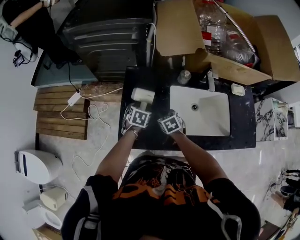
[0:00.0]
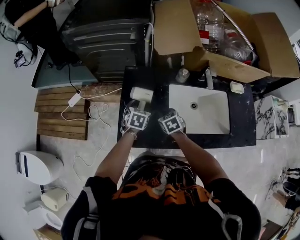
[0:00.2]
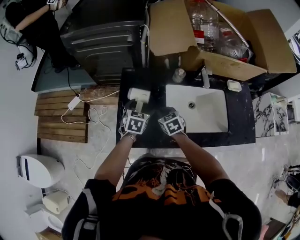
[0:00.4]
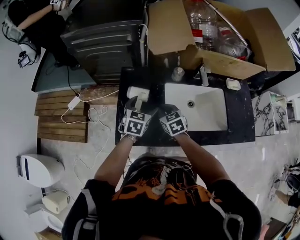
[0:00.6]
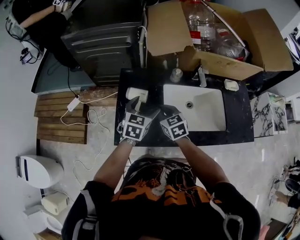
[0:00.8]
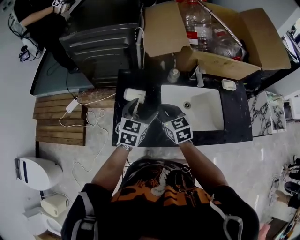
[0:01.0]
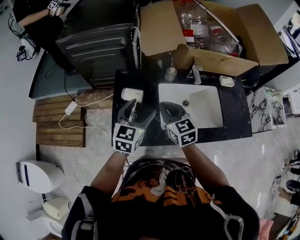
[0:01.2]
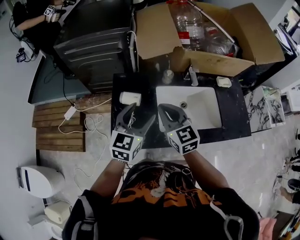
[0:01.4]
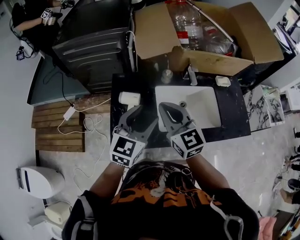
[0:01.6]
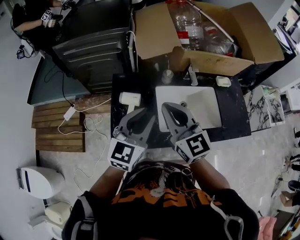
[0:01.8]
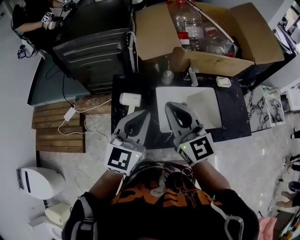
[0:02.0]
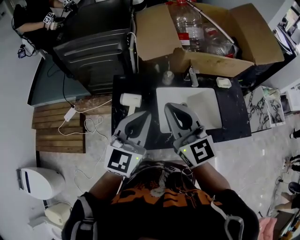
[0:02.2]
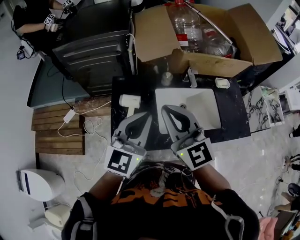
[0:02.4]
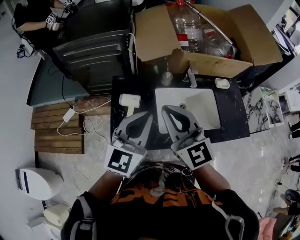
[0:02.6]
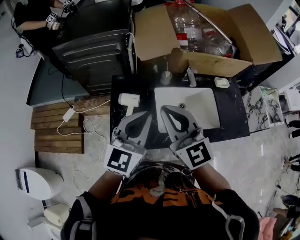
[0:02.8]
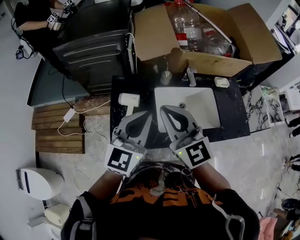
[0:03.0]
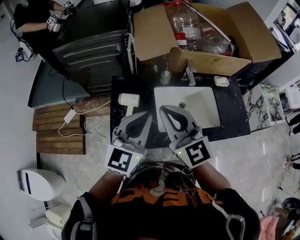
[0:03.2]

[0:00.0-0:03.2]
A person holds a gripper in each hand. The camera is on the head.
0:00.0 to 0:01.6: The two grippers go approximately 30 cm upward. The left gripper tilts its fingers approximately 40 degrees upward, and closes its fingers; the right gripper tilts its fingers some 50 degrees upward.
0:01.6 to 0:03.2: Both grippers travel together upward, about 5 cm. The left gripper closes up.

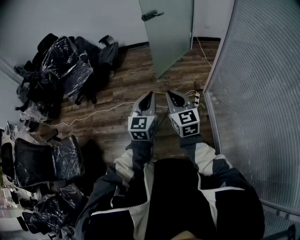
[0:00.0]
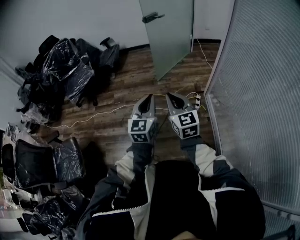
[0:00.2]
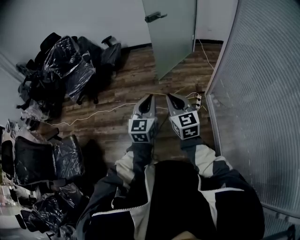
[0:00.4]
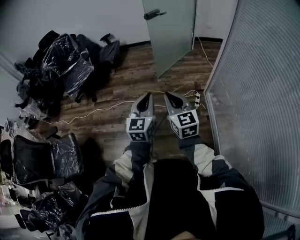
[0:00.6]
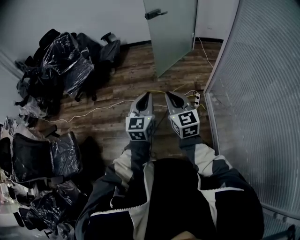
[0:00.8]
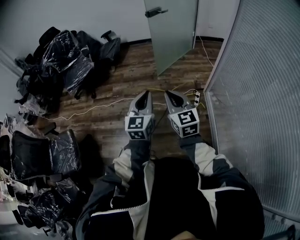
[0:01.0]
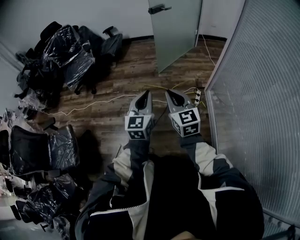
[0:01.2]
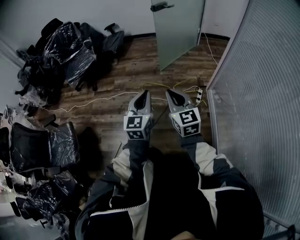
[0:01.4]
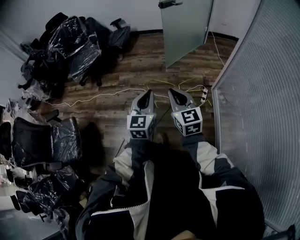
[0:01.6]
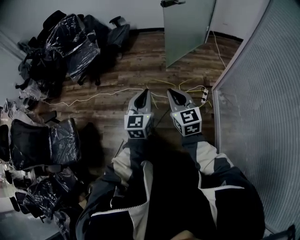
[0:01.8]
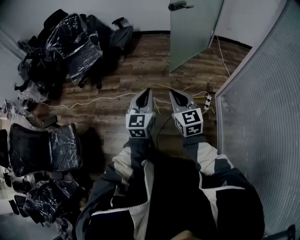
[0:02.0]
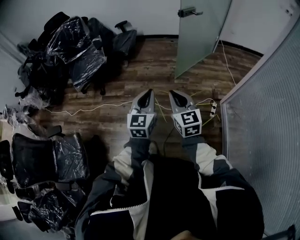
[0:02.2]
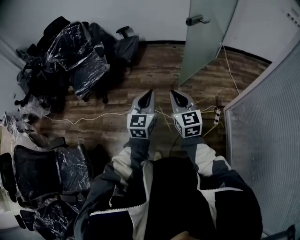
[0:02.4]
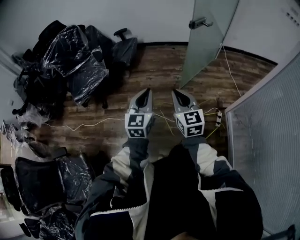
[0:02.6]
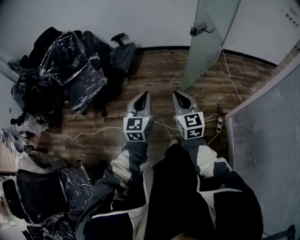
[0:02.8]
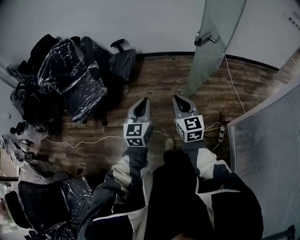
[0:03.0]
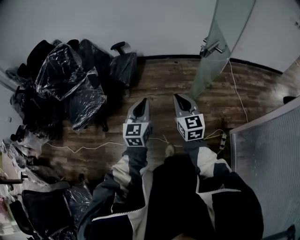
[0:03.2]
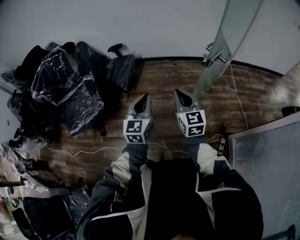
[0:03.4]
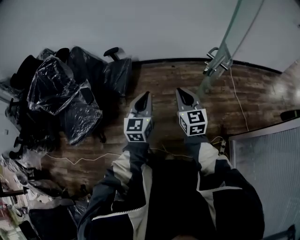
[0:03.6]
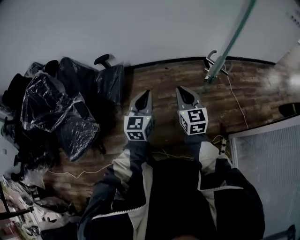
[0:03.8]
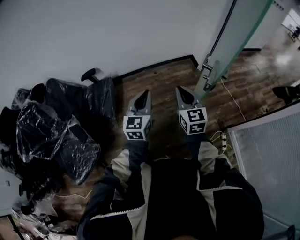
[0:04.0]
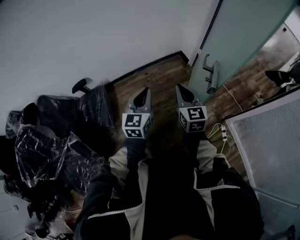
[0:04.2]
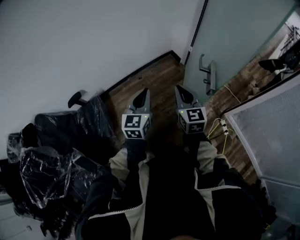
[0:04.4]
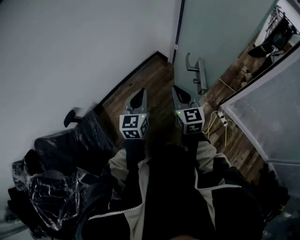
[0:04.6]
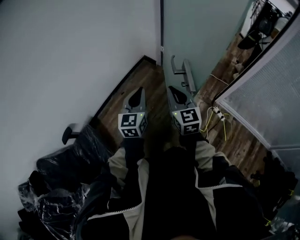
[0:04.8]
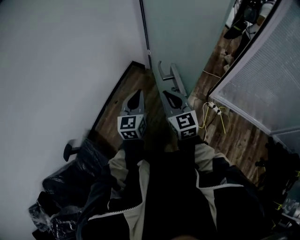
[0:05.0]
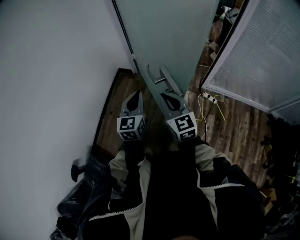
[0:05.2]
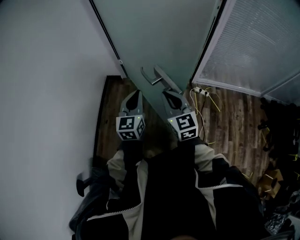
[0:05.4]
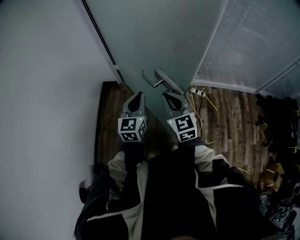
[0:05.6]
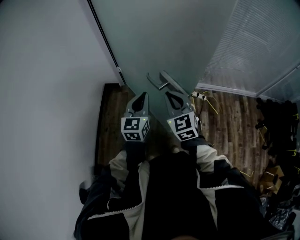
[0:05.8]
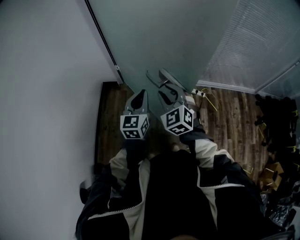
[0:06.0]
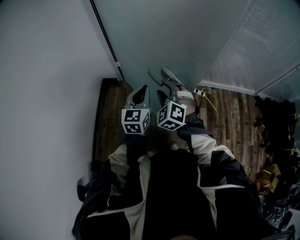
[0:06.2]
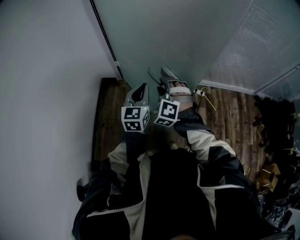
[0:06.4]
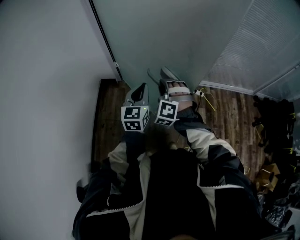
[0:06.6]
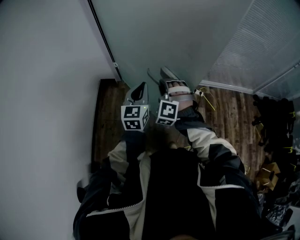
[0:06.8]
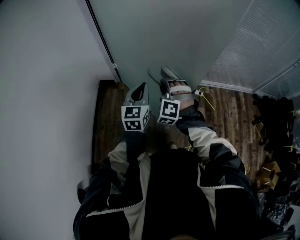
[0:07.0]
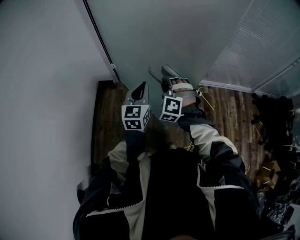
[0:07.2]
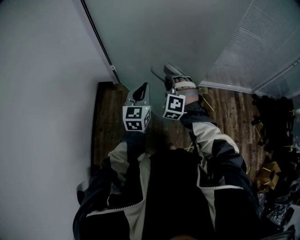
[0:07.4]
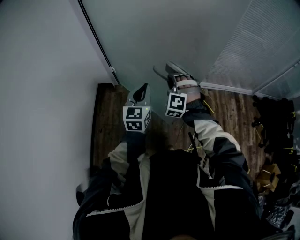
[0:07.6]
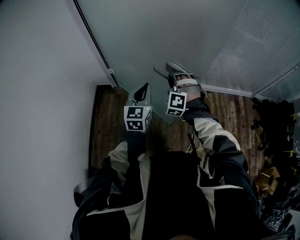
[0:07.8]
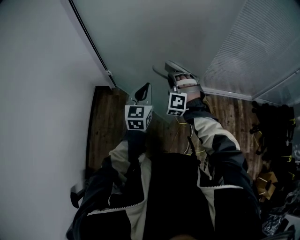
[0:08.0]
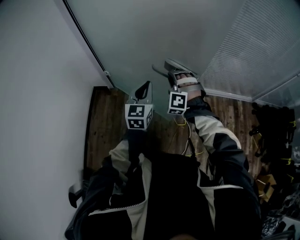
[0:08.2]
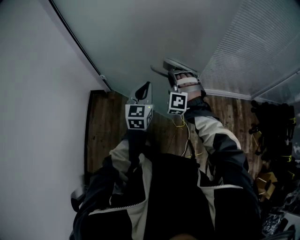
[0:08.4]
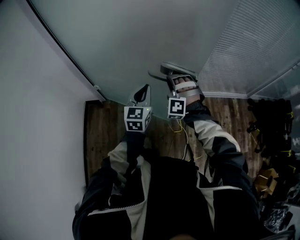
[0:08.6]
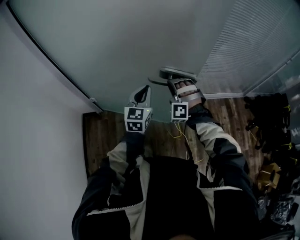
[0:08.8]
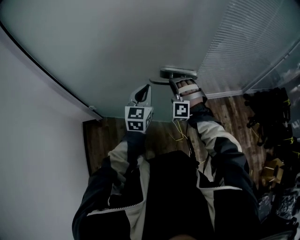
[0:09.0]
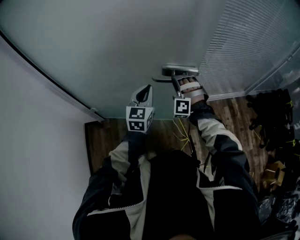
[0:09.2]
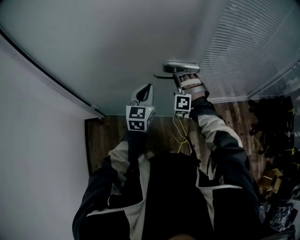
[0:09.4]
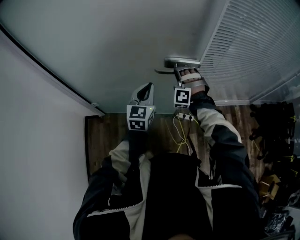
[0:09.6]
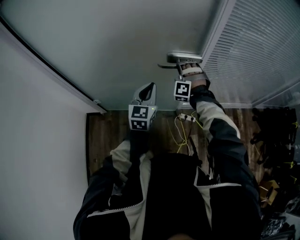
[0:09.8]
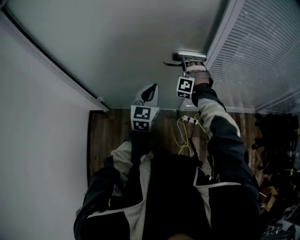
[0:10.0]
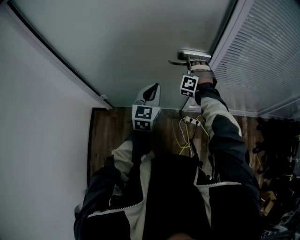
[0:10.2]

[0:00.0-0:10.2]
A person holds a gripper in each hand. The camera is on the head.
0:00.0 to 0:01.4: The grippers make only small movements.
0:01.4 to 0:03.0: The pair of grippers is taken forward and to the left, some 50 cm.
0:03.0 to 0:04.4: Both grippers are carried about 50 cm. The right gripper rotates approximately 40 degrees. Meanwhile the left gripper changes its angle by approximately 40 degrees.
0:04.4 to 0:05.8: The left gripper moves some 25 cm, and turns by roughly 50 degrees. The right gripper changes place by some 15 cm, and changes its angle by some 40 degrees.
0:05.8 to 0:07.2: The right gripper shifts about 10 cm forward and downward, twists approximately 50 degrees counterclockwise, seen from behind, and opens up.
0:07.2 to 0:08.8: The grippers both shift forward and to the right by some 30 cm.
0:08.8 to 0:10.2: The left gripper moves forward, some 10 cm, while the right gripper heads forward, covering about 25 cm.

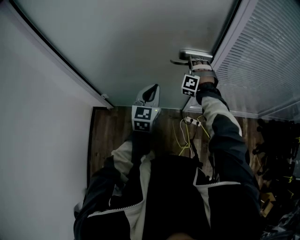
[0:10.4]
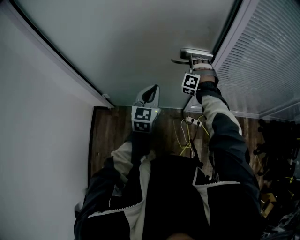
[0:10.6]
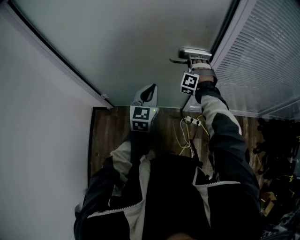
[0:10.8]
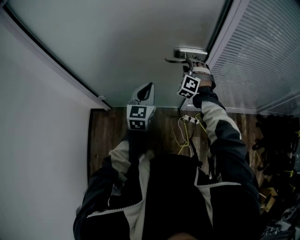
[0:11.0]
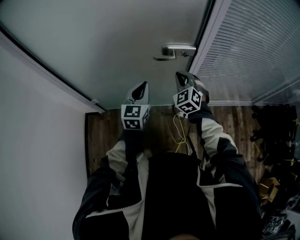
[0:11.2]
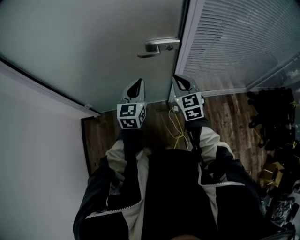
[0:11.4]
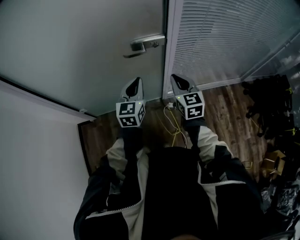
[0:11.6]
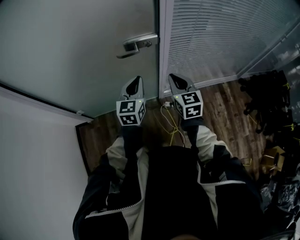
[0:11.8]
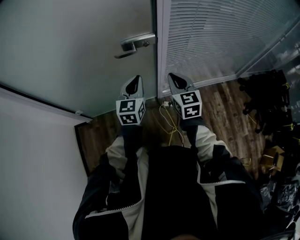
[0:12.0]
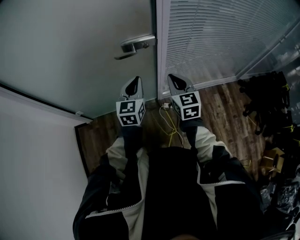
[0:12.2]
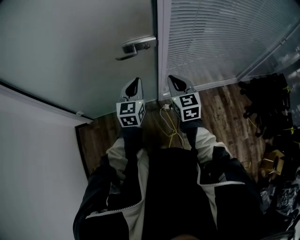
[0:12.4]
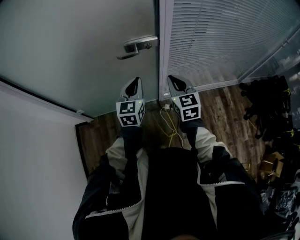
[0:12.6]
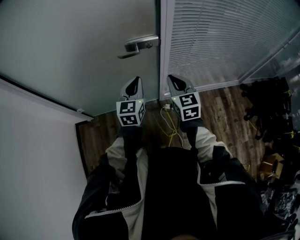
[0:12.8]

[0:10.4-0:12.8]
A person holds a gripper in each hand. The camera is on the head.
0:10.4 to 0:11.6: The left gripper moves to the right, approximately 10 cm, while the right gripper is displaced backward and to the right by roughly 20 cm, twists some 100 degrees clockwise, seen from behind, and closes.
0:11.6 to 0:12.8: The grippers move only a little.

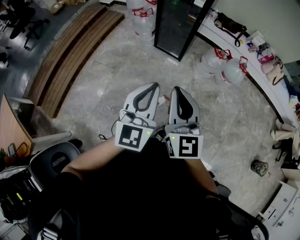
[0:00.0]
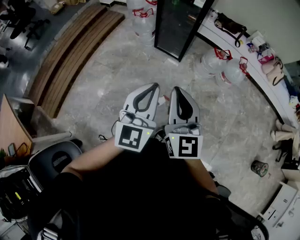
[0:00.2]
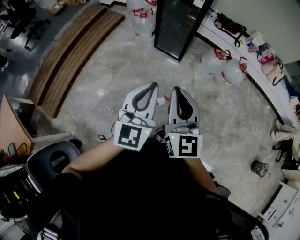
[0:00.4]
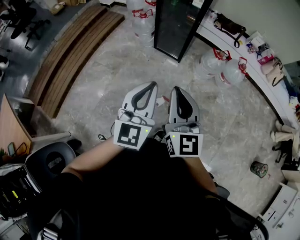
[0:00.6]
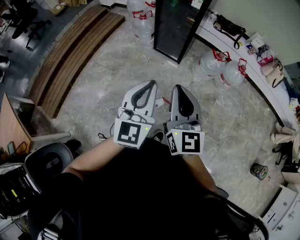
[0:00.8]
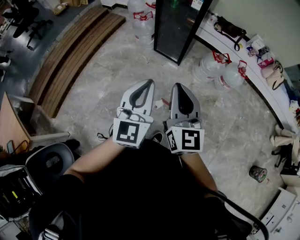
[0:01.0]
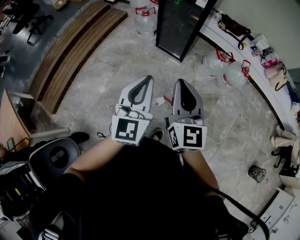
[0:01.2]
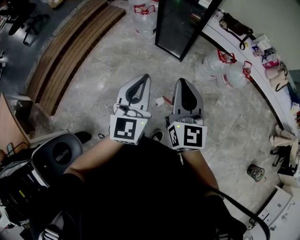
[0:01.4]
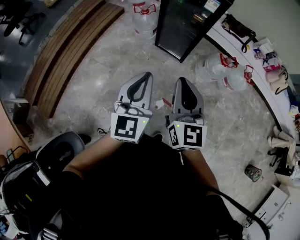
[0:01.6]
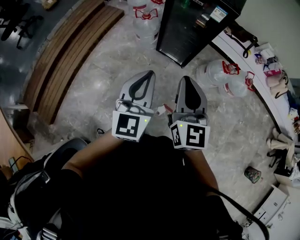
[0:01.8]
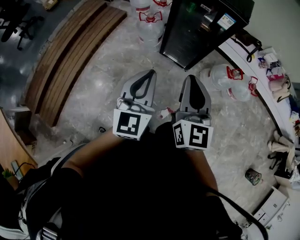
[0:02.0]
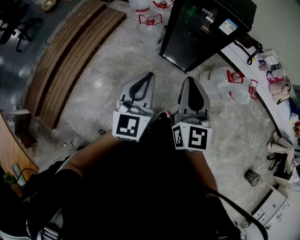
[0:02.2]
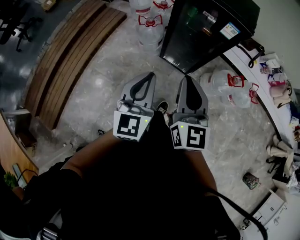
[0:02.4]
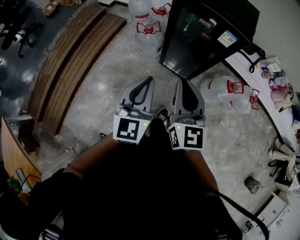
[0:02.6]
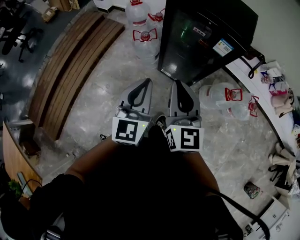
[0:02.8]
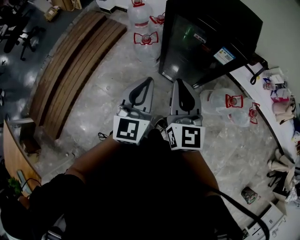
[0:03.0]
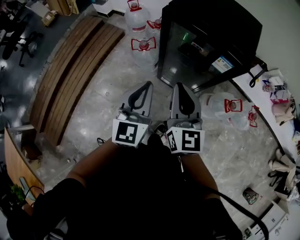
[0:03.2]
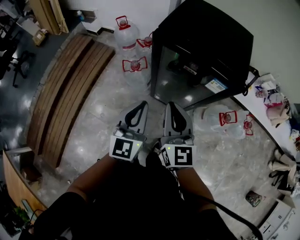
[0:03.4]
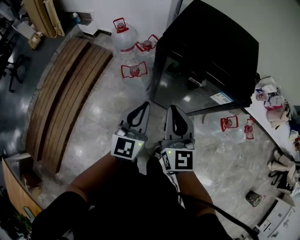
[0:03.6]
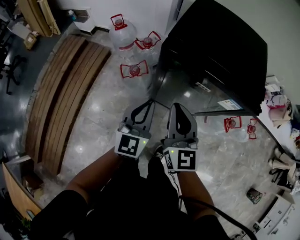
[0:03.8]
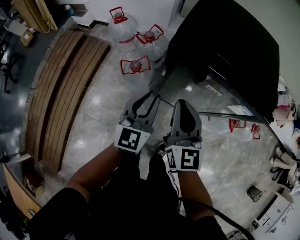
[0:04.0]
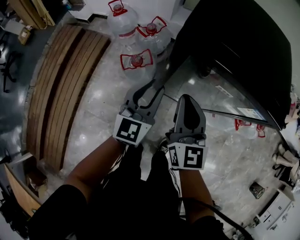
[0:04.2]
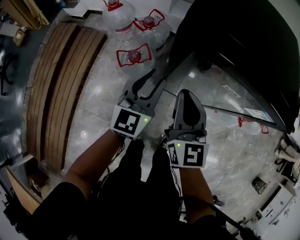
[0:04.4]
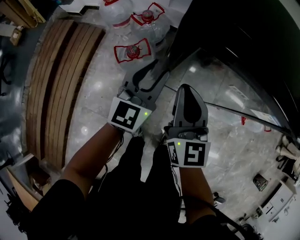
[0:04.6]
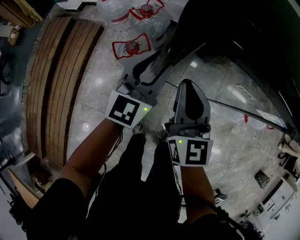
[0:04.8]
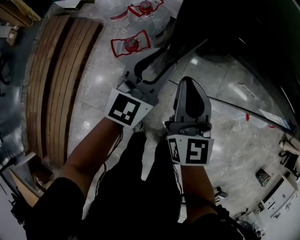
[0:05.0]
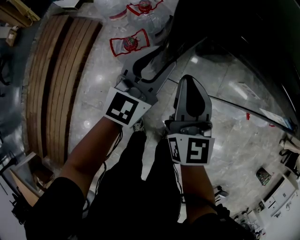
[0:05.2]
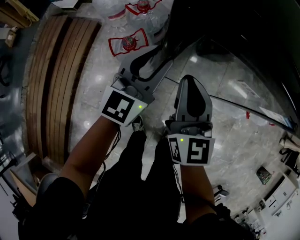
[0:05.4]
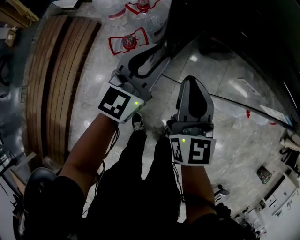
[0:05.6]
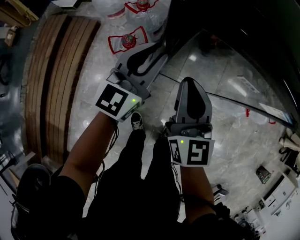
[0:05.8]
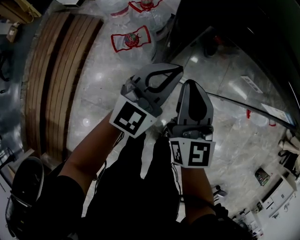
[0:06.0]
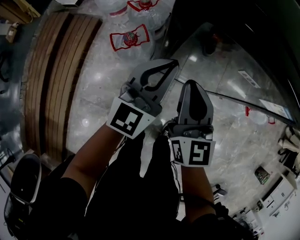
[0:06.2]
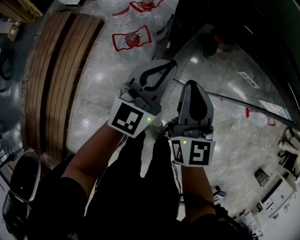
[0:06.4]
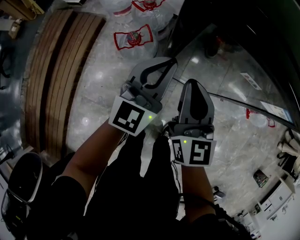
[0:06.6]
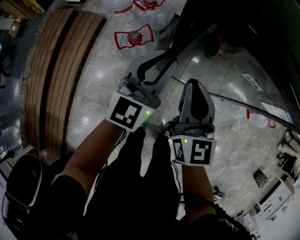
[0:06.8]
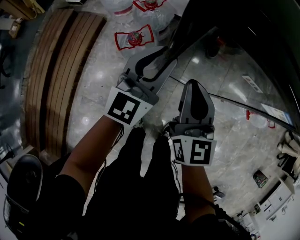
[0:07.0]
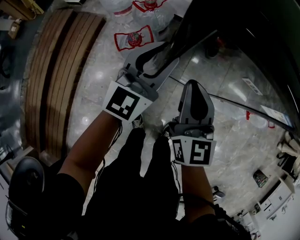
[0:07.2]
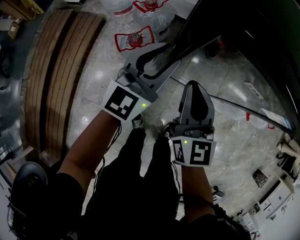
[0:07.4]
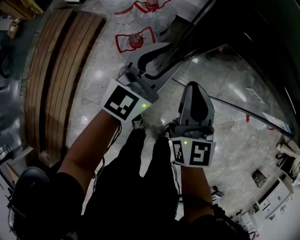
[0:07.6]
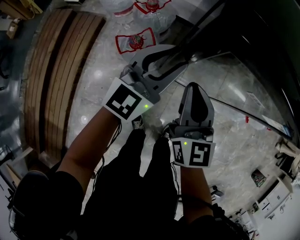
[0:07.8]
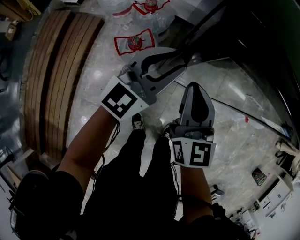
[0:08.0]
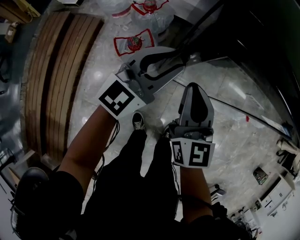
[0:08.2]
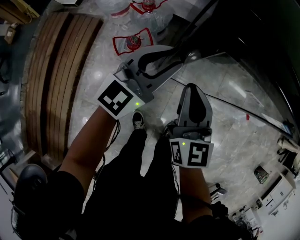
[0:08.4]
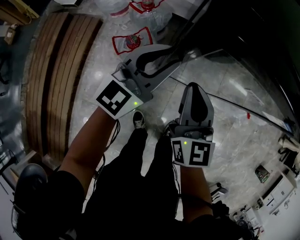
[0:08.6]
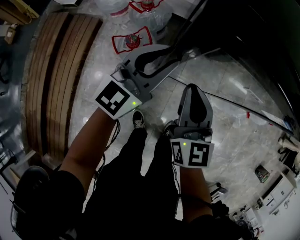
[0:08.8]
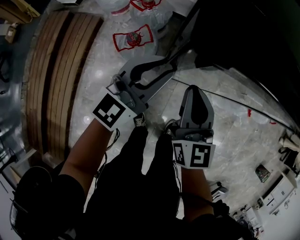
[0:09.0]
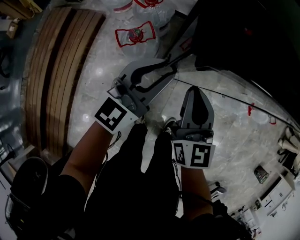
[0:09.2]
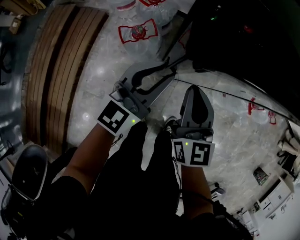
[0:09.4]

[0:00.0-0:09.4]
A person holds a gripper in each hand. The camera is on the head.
0:00.0 to 0:01.6: Both grippers travel together forward, about 20 cm.
0:01.6 to 0:03.2: The two grippers go about 40 cm forward.
0:03.2 to 0:04.8: Both grippers move forward and downward, approximately 35 cm. The left gripper changes its angle by about 20 degrees, and opens up.
0:04.8 to 0:06.2: The left gripper ends up about 5 cm from where it was, and closes.
0:06.2 to 0:07.8: The left gripper ends up approximately 5 cm from where it was, and opens.
0:07.8 to 0:09.4: The right gripper goes roughly 5 cm backward; the left gripper moves backward, about 10 cm.
